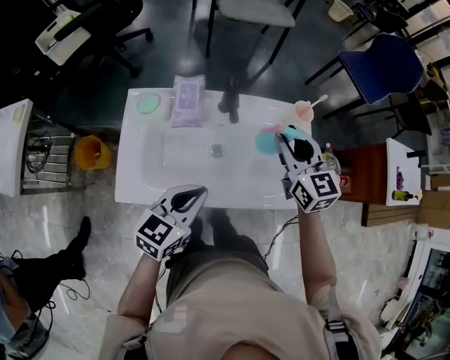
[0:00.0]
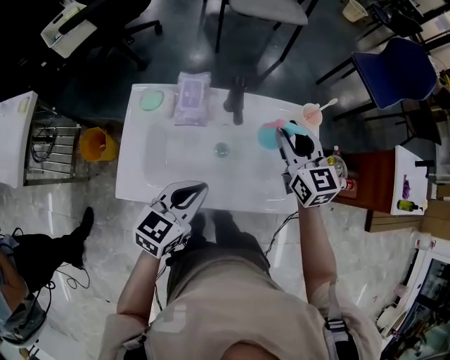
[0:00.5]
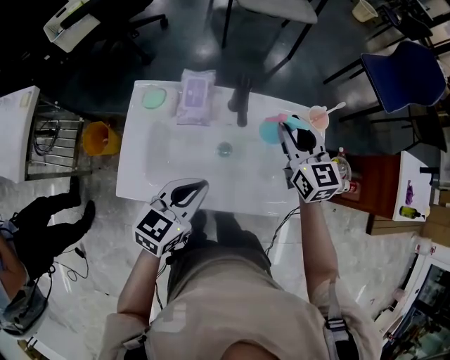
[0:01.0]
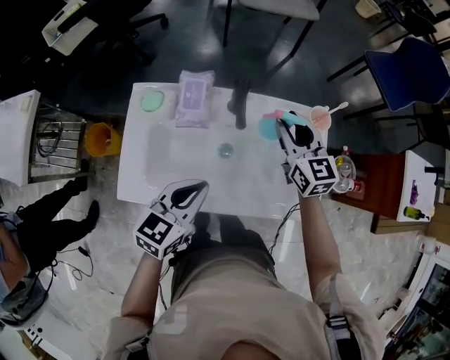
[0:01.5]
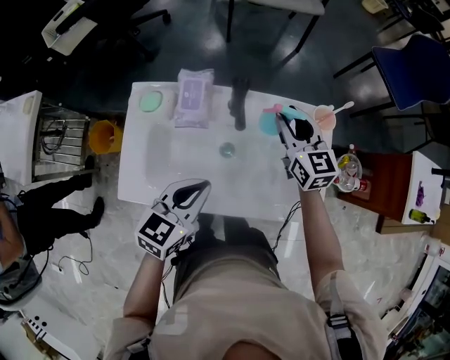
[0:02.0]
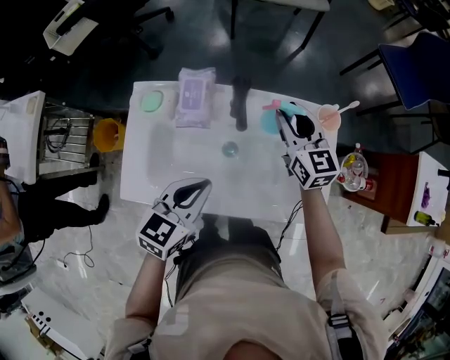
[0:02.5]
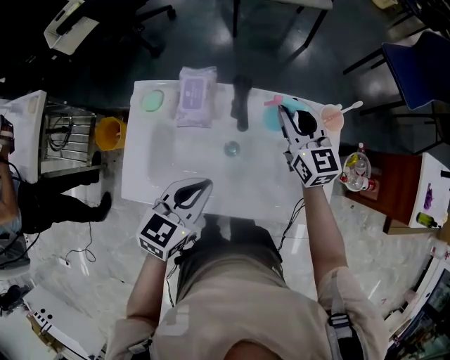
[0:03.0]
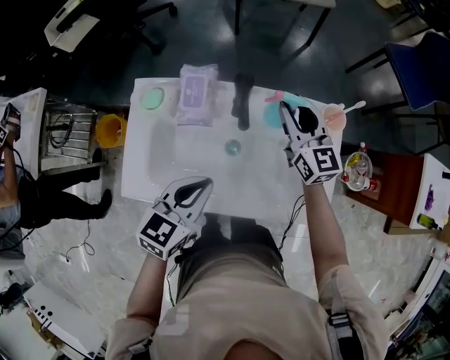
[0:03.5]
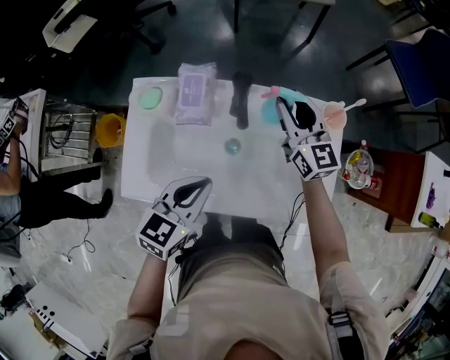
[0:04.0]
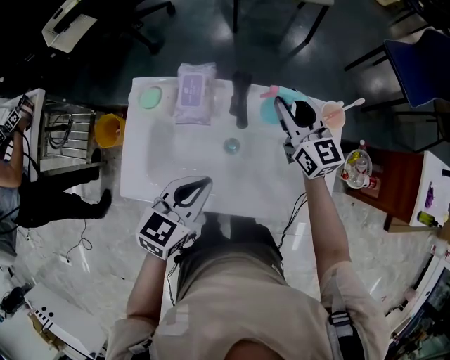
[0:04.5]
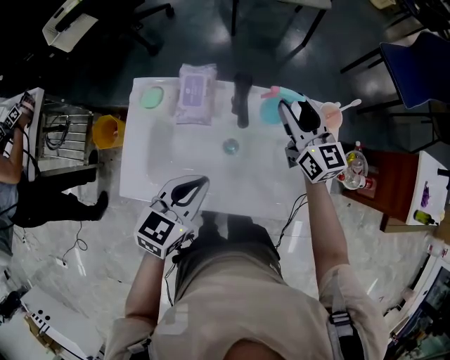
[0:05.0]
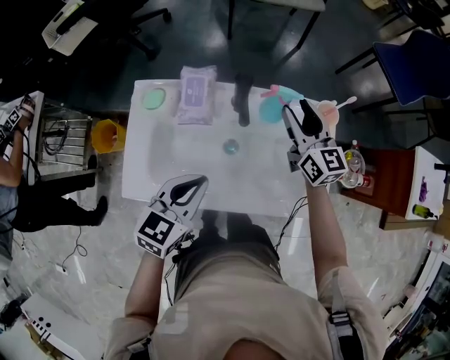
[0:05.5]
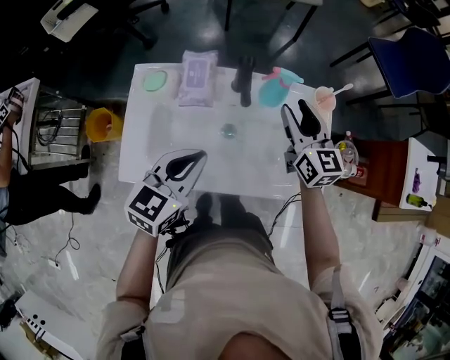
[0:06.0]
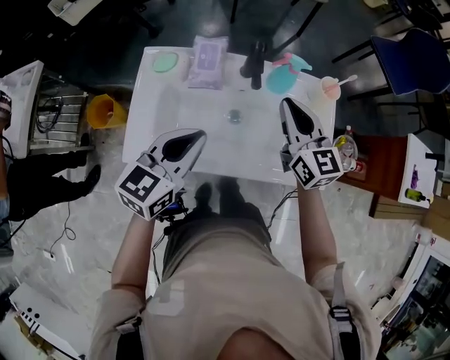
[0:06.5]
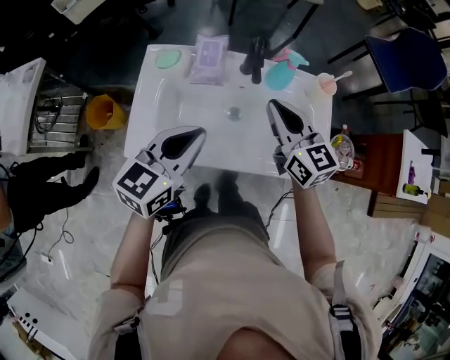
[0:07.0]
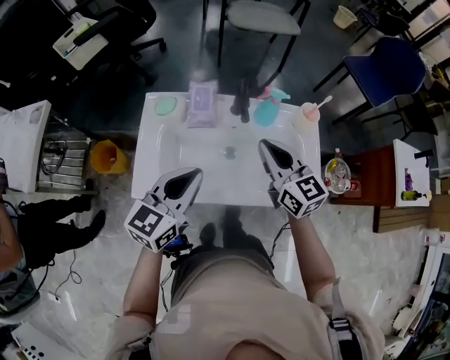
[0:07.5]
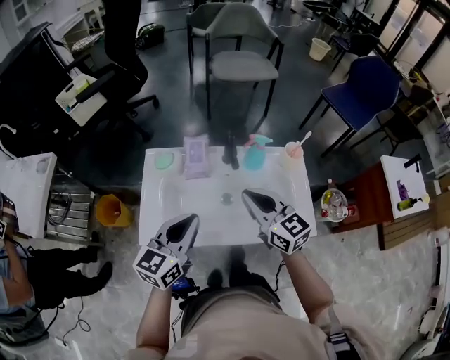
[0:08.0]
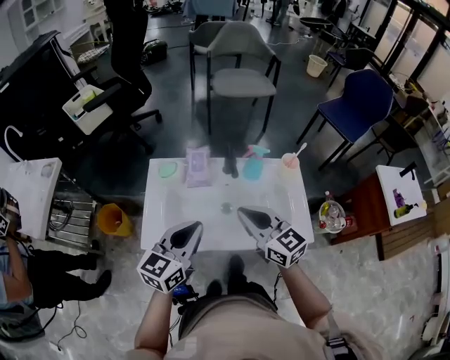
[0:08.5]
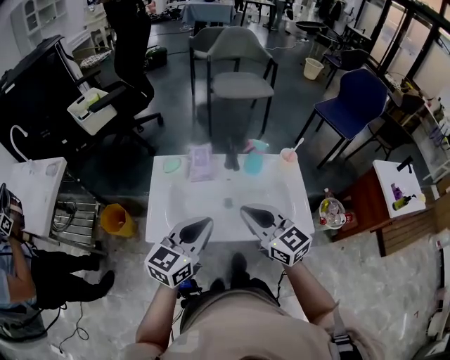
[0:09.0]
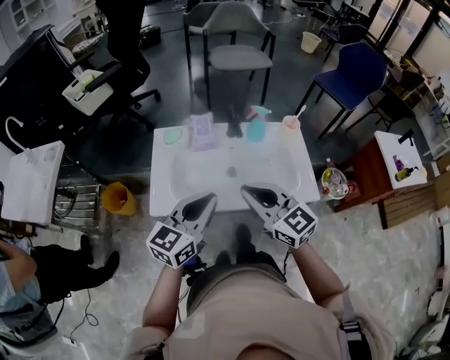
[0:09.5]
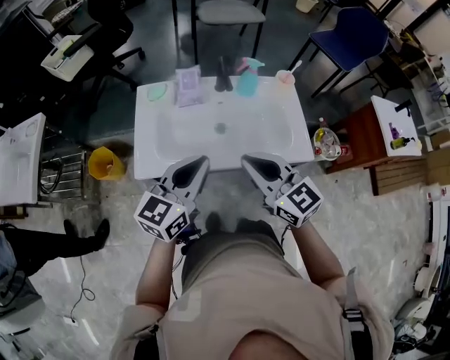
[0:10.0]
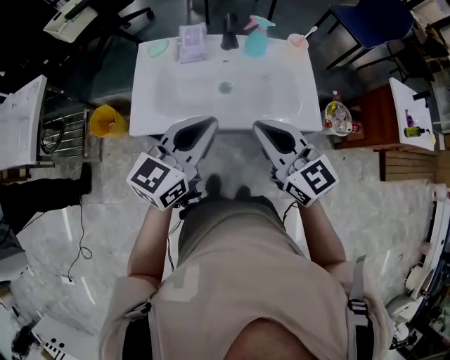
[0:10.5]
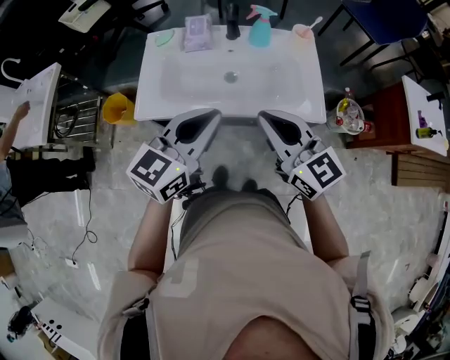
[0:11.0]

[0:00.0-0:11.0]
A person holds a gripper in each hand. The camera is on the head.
0:00.0 to 0:02.0: The right gripper moves forward and downward, about 10 cm.
0:02.0 to 0:05.5: There are only small adjustments of the grippers.
0:05.5 to 0:07.5: The left gripper is displaced upward by some 5 cm, while the right gripper shifts some 15 cm backward and to the left, and closes.
0:07.5 to 0:09.0: The right gripper goes about 10 cm backward and to the left; the left gripper changes place by approximately 5 cm.
0:09.0 to 0:11.0: The two grippers go some 10 cm backward and to the right.

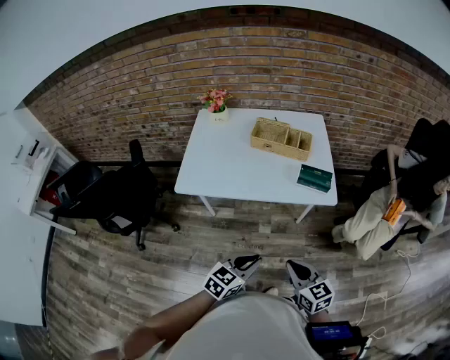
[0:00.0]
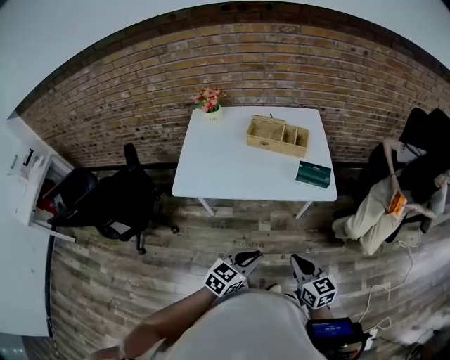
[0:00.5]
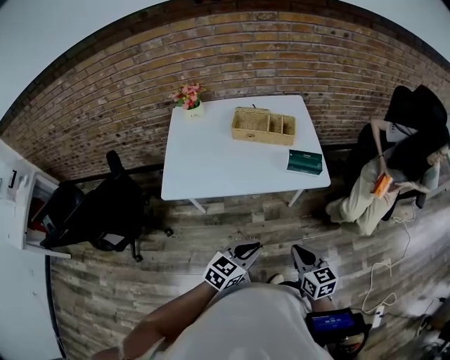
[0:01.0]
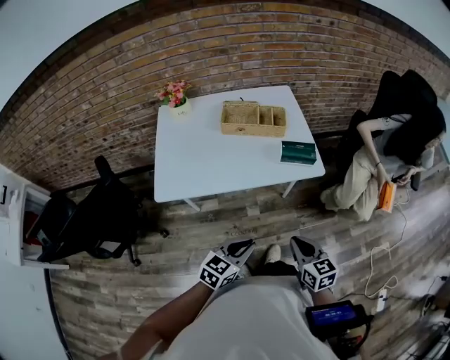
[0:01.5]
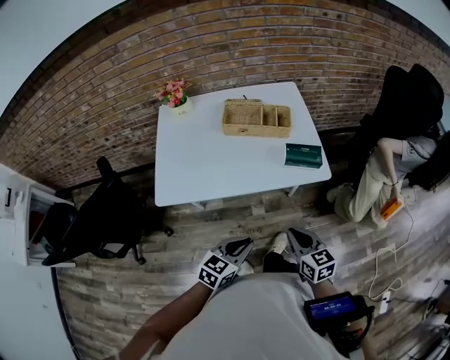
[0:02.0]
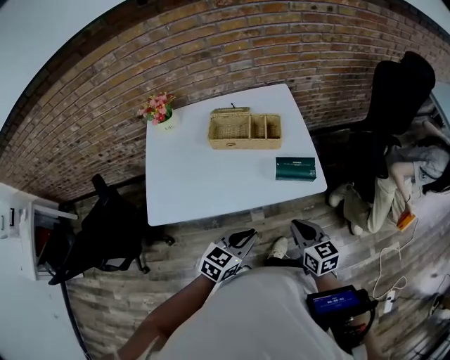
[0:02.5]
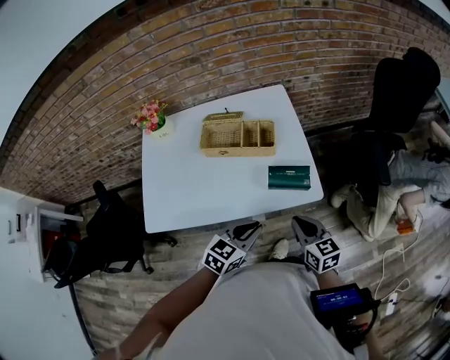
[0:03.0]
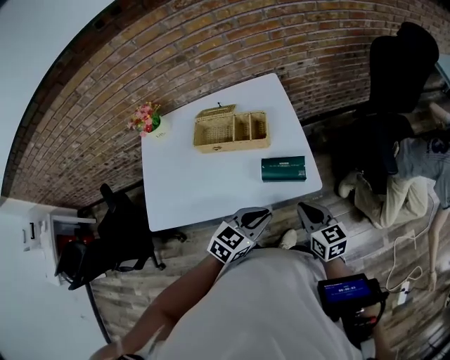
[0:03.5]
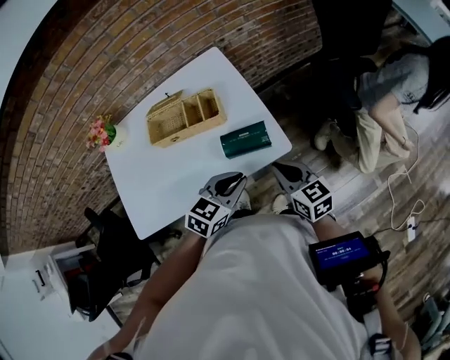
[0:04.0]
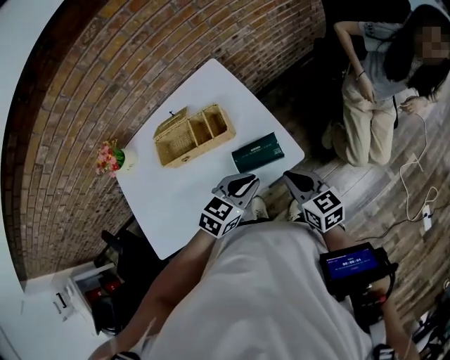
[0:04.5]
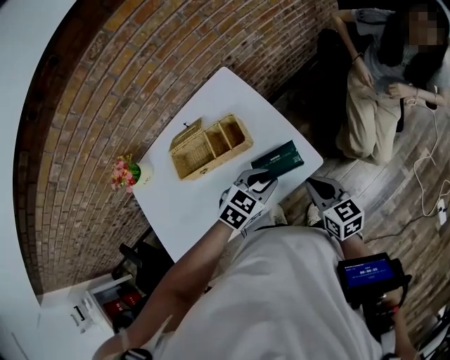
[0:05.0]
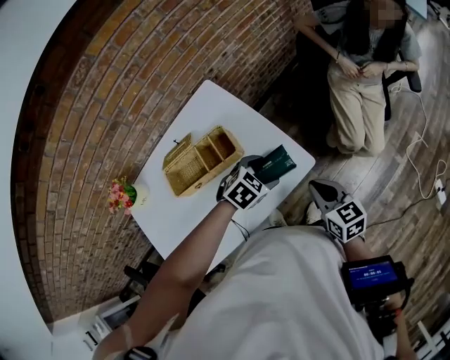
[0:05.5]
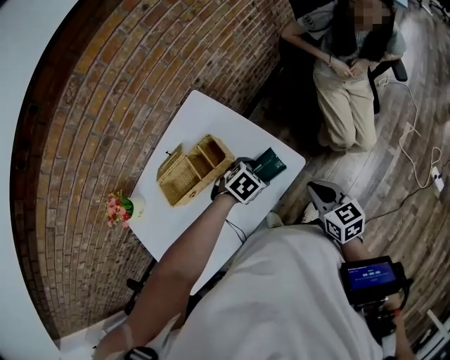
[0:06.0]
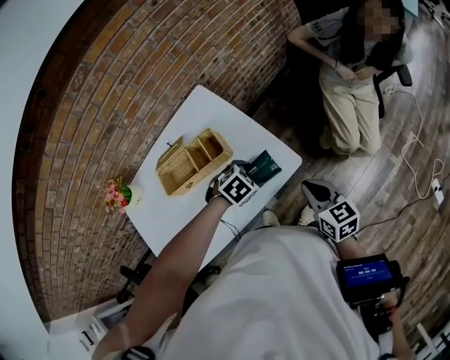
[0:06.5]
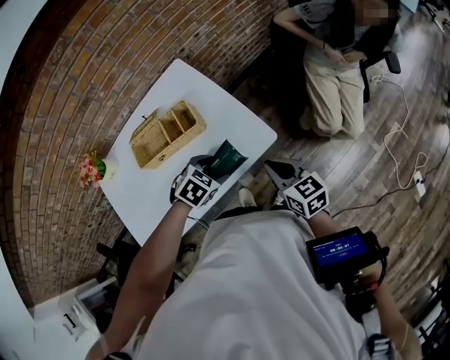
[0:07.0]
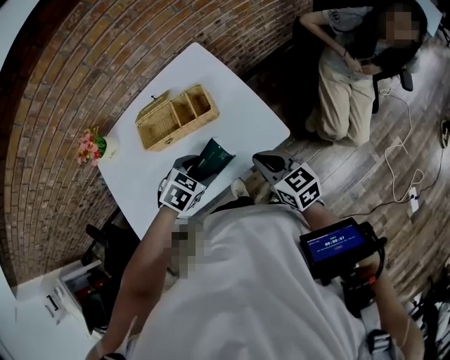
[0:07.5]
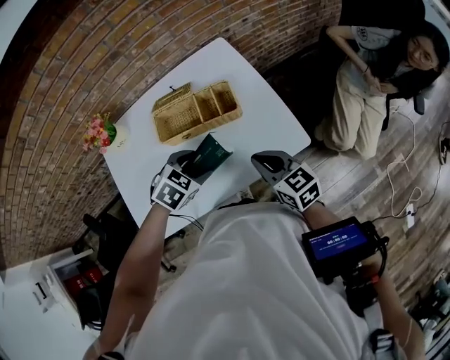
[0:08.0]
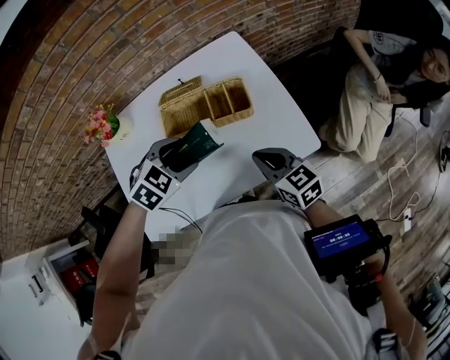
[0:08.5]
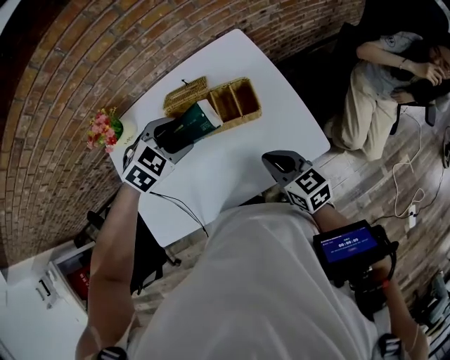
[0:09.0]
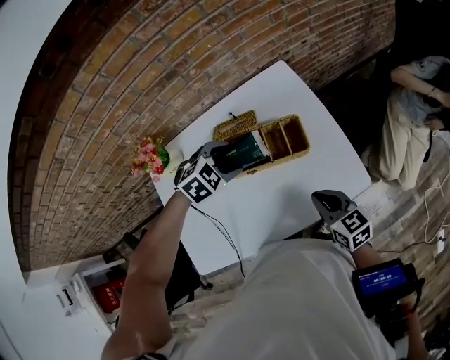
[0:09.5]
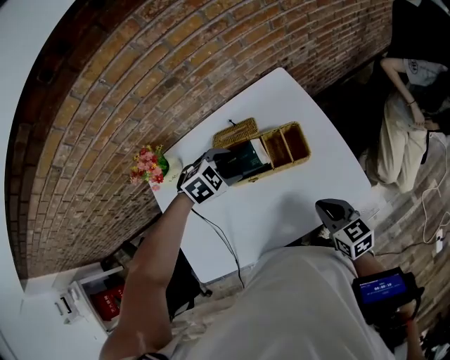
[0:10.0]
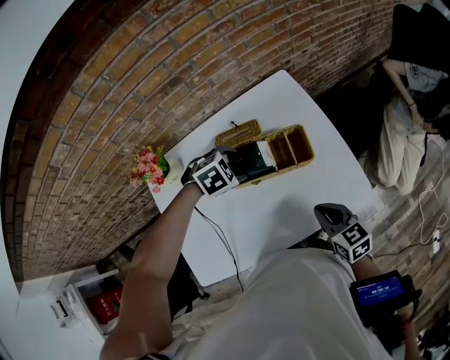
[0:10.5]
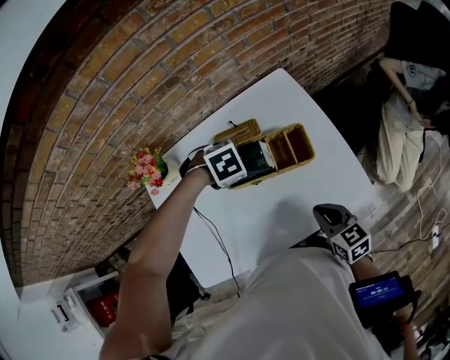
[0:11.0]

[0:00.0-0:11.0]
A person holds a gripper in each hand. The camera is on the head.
0:00.0 to 0:02.0: The right gripper heads forward, covering about 10 cm, while the left gripper is displaced forward and to the left by some 10 cm.
0:02.0 to 0:03.5: The grippers both shift forward and to the right by some 20 cm.
0:03.5 to 0:05.5: The left gripper changes place by roughly 15 cm, swivels some 50 degrees, and opens its fingers, while the right gripper turns by about 30 degrees.
0:05.5 to 0:07.5: The left gripper shifts by about 15 cm, and swivels about 20 degrees, while the right gripper moves approximately 10 cm, and rotates about 20 degrees.
0:07.5 to 0:09.0: The left gripper travels forward, to the left and upward by about 20 cm. The right gripper goes some 10 cm to the left.
0:09.0 to 0:11.0: The left gripper travels downward by some 10 cm, and swivels approximately 30 degrees.

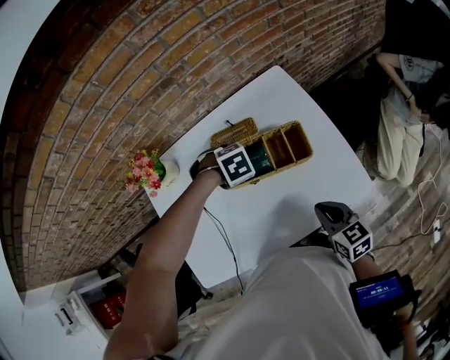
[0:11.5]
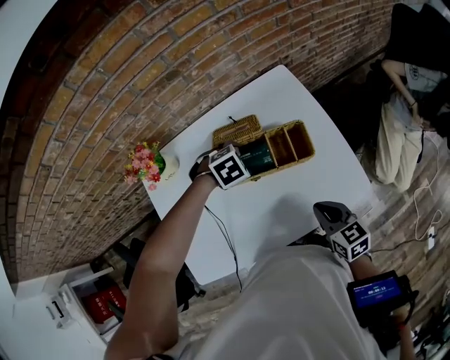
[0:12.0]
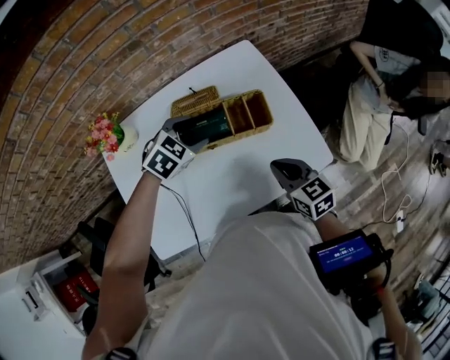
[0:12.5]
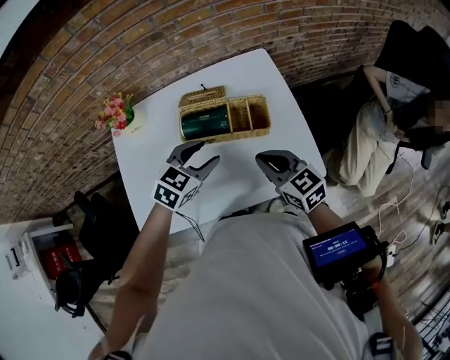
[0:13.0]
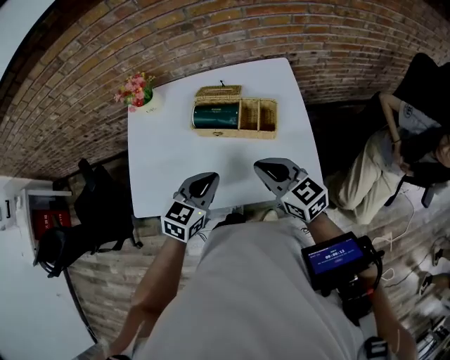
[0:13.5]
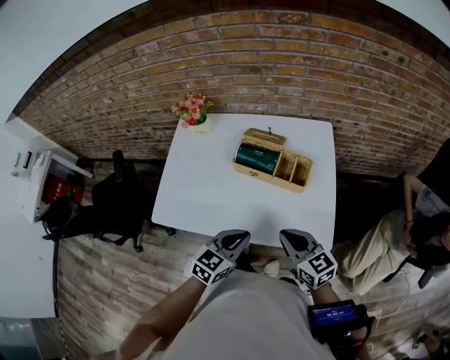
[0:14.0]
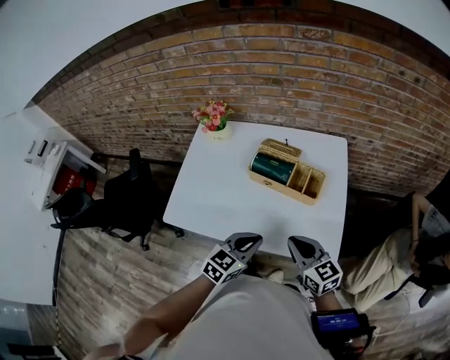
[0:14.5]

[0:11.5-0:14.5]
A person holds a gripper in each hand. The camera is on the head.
0:11.5 to 0:13.0: The right gripper heads upward, covering approximately 5 cm, and swivels some 30 degrees. Meanwhile the left gripper changes place by some 15 cm, and tilts its fingers about 40 degrees upward.
0:13.0 to 0:14.5: The right gripper heads backward, covering some 10 cm, while the left gripper shifts roughly 15 cm backward, swivels roughly 30 degrees, and closes up.

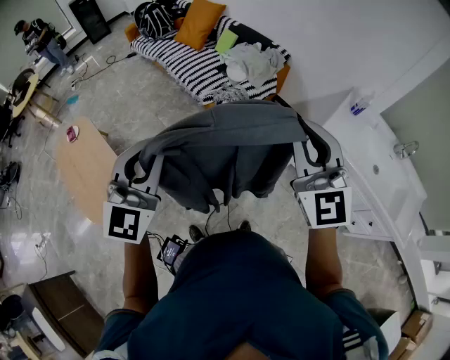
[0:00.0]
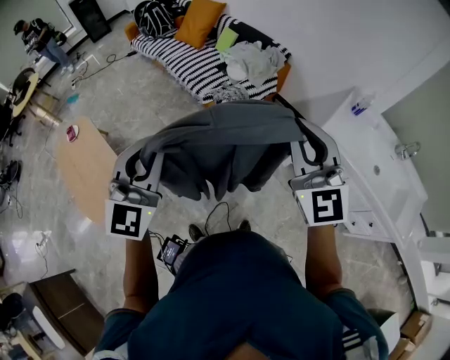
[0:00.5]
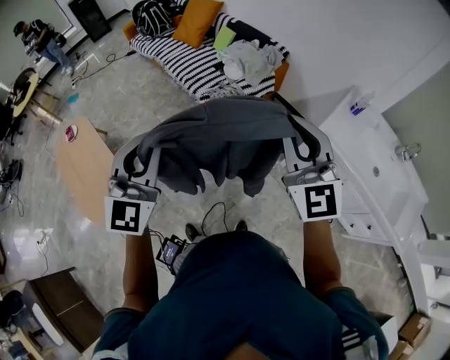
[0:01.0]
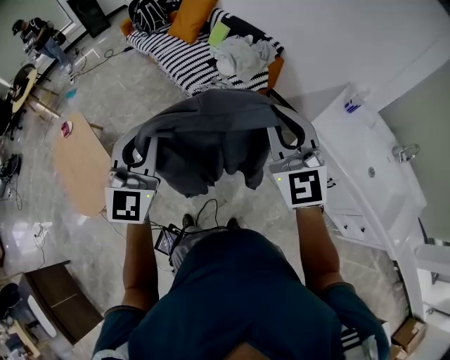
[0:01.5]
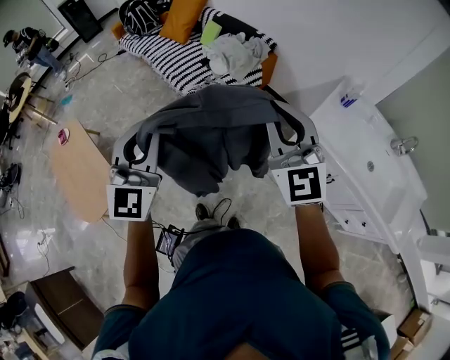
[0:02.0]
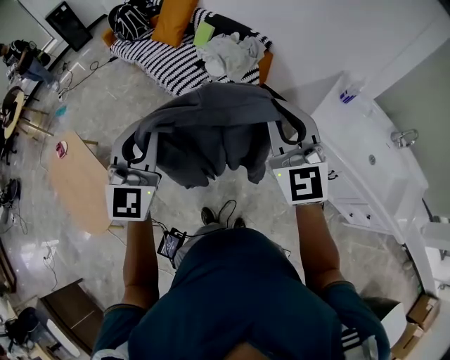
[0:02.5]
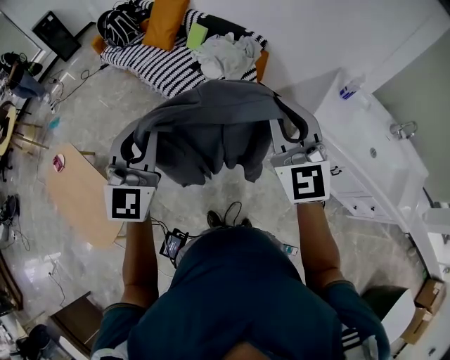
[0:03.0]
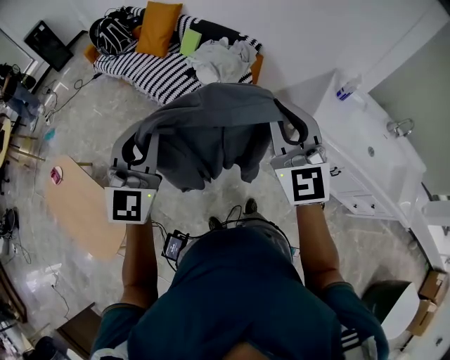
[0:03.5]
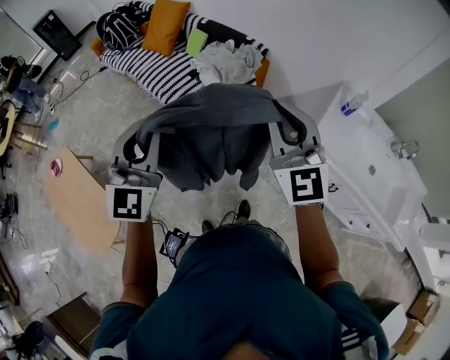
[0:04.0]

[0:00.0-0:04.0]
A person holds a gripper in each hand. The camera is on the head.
0:00.0 to 0:02.0: Both grippers travel together to the right and forward, roughly 10 cm.
0:02.0 to 0:04.0: The two grippers go some 10 cm forward.
